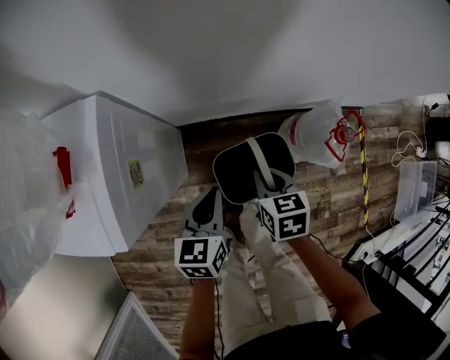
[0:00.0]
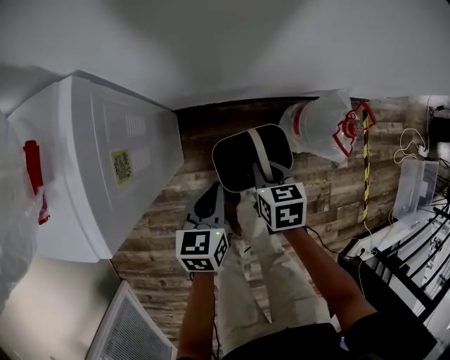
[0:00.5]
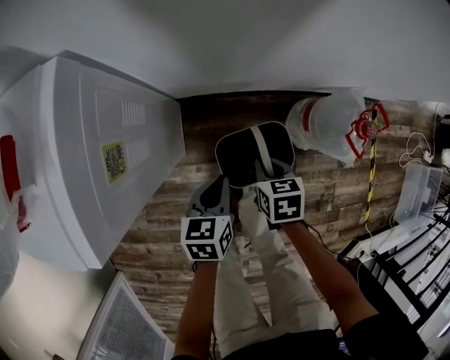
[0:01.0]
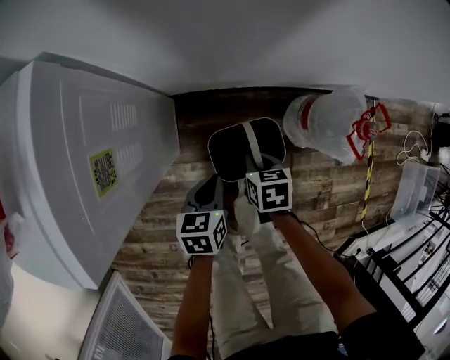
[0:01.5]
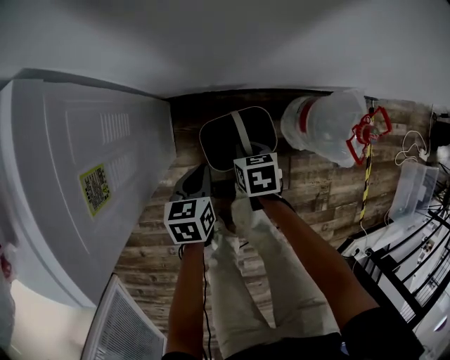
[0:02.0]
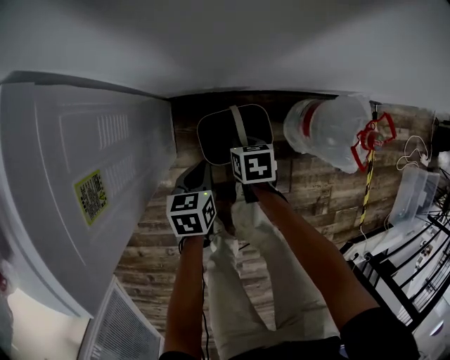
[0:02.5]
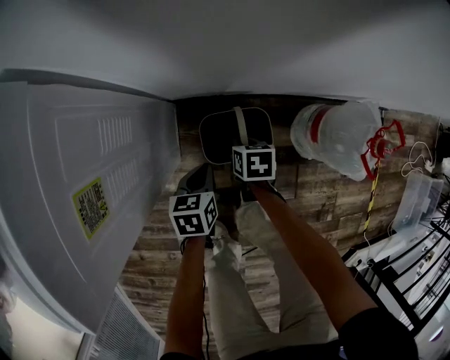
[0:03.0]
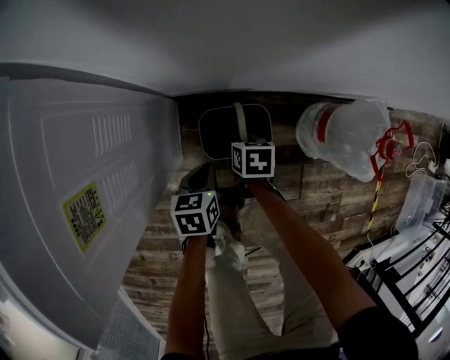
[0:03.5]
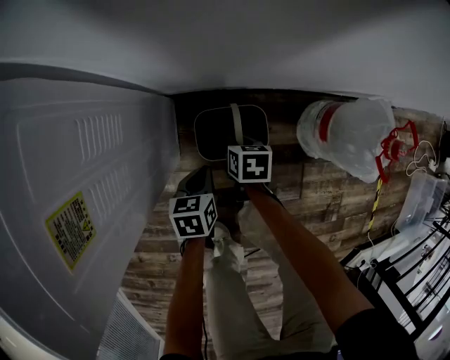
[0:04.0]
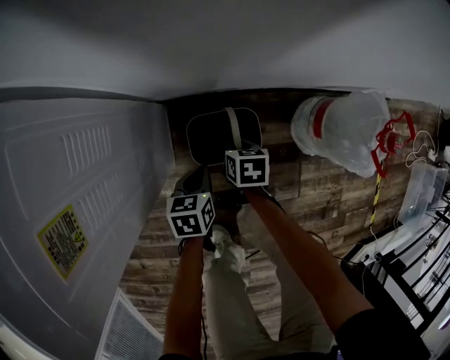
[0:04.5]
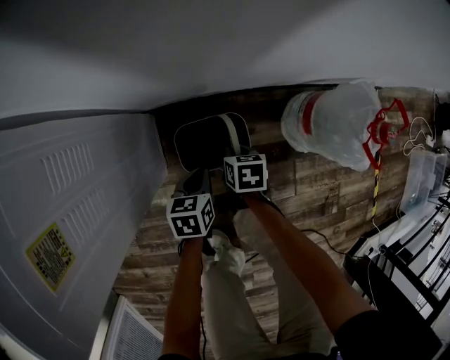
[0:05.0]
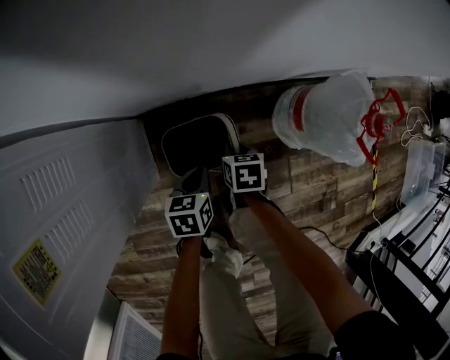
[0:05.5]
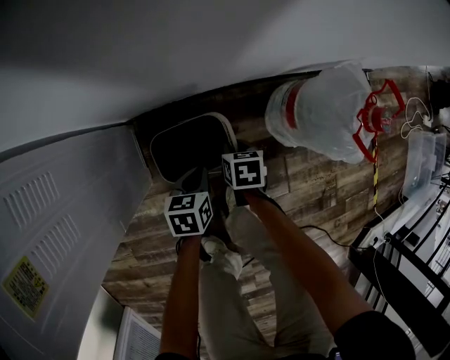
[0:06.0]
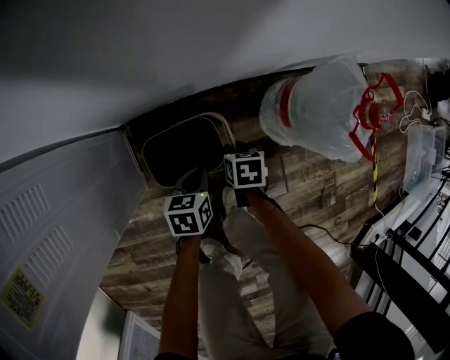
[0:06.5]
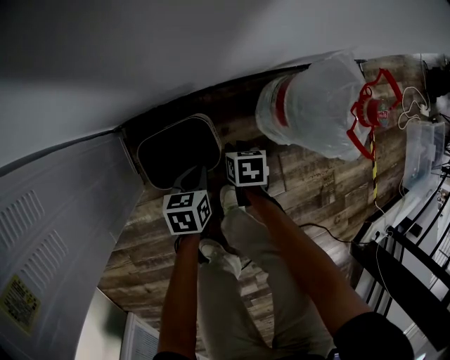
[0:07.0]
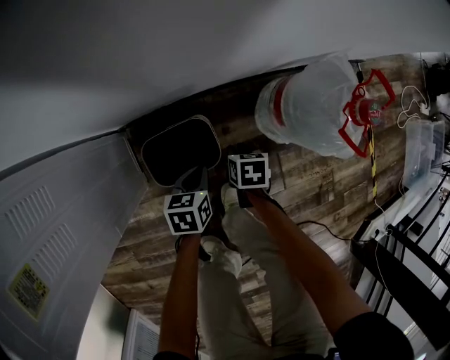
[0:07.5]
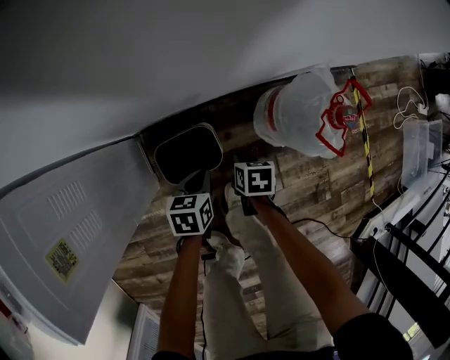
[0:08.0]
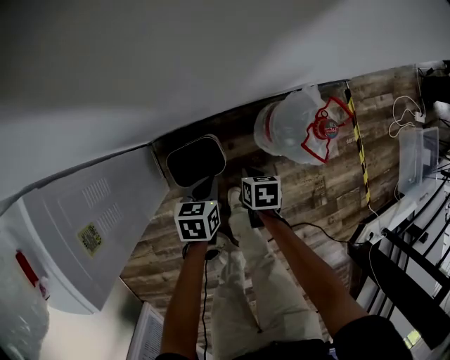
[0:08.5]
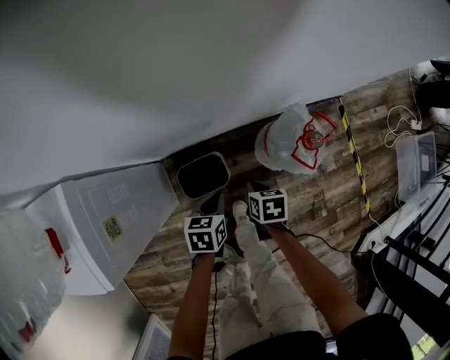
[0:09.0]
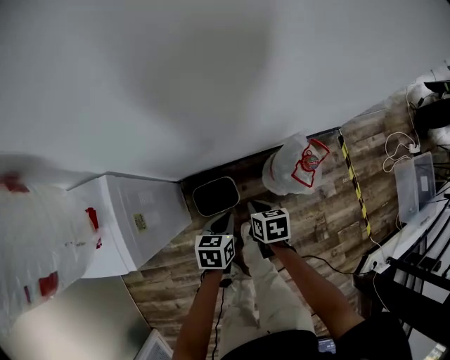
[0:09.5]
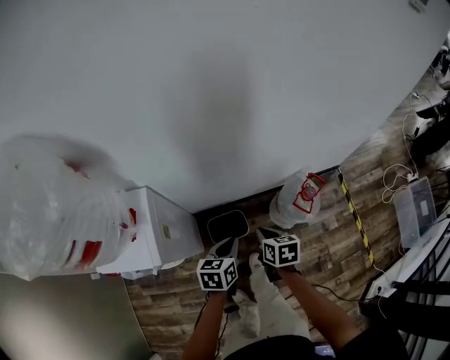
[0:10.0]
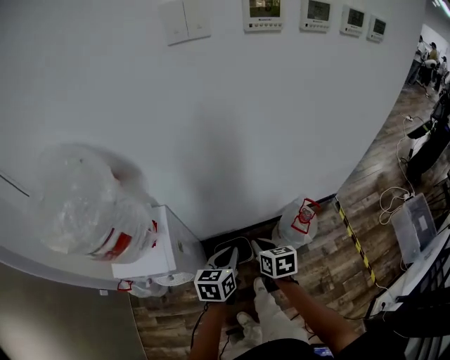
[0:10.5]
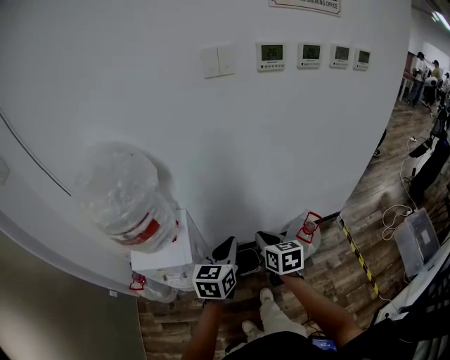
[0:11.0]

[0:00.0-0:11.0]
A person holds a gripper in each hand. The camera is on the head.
0:00.0 to 0:02.0: Both grippers travel together downward, roughly 20 cm.
0:02.0 to 0:03.5: The two grippers go roughly 10 cm downward.
0:03.5 to 0:05.5: Both grippers travel together to the right and downward, some 10 cm.
0:05.5 to 0:07.5: The grippers both shift to the right by approximately 10 cm.
0:07.5 to 0:09.0: The two grippers go approximately 25 cm upward.
0:09.0 to 0:11.0: The grippers both shift upward by approximately 50 cm. The right gripper points its fingers roughly 40 degrees further upward. Meanwhile the left gripper angles its fingers upward, by some 30 degrees.

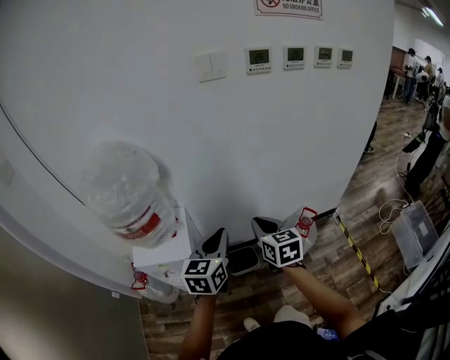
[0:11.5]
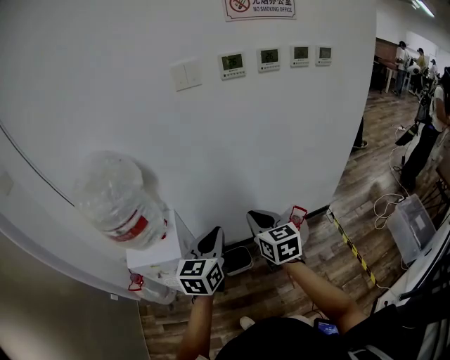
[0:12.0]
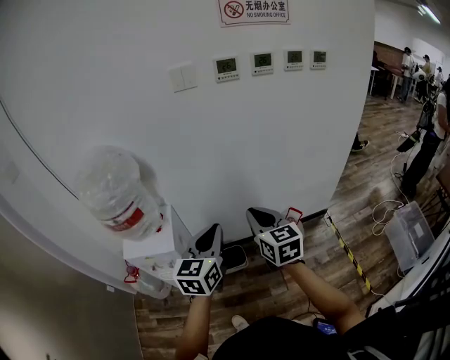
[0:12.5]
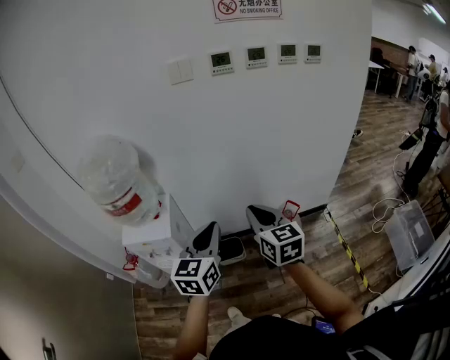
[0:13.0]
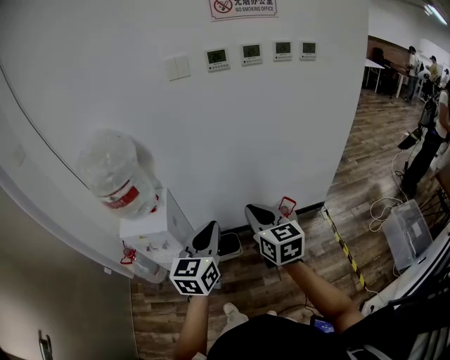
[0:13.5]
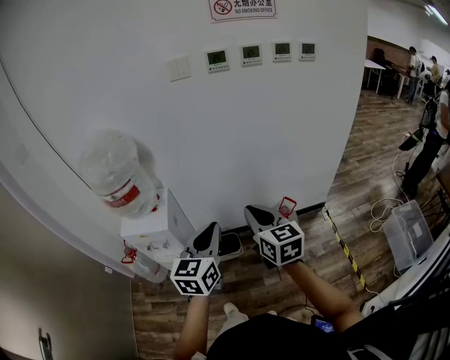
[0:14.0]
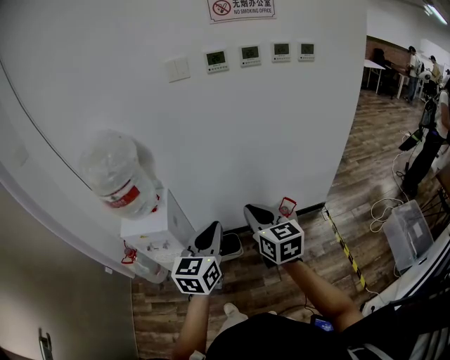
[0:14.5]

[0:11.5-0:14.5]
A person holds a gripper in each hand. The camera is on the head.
0:11.5 to 0:13.0: The left gripper moves backward, to the right and upward, approximately 15 cm. Meanwhile the right gripper heads to the right, backward and upward, covering approximately 15 cm.
0:13.0 to 0:14.5: There are only small adjustments of the grippers.

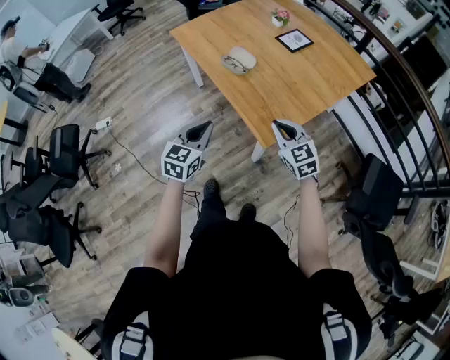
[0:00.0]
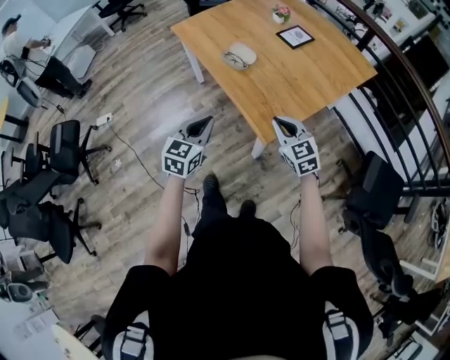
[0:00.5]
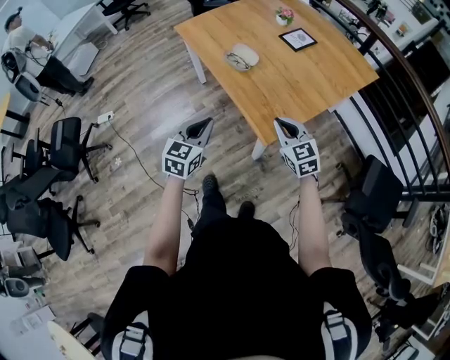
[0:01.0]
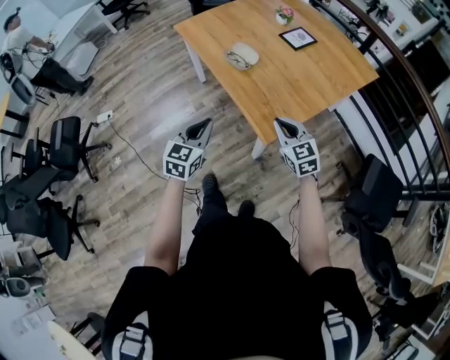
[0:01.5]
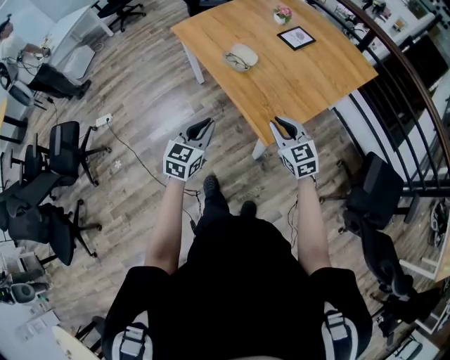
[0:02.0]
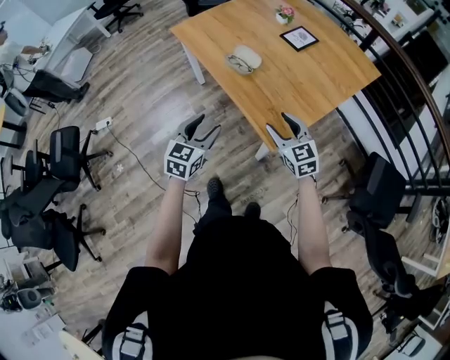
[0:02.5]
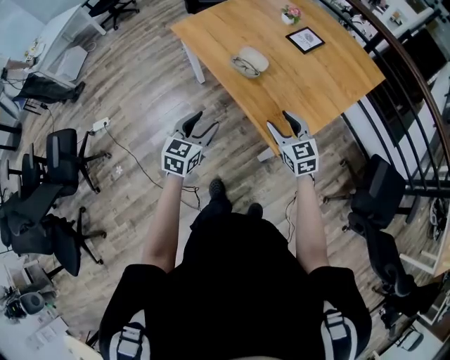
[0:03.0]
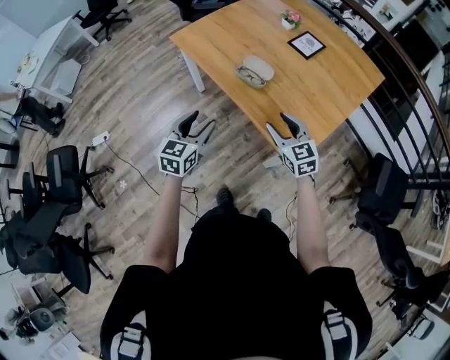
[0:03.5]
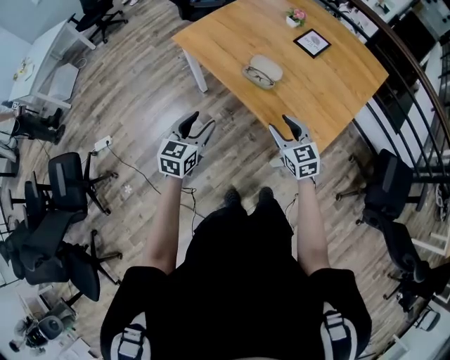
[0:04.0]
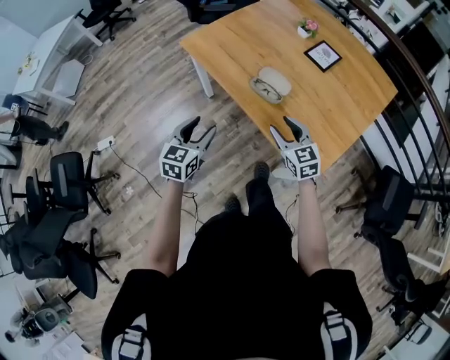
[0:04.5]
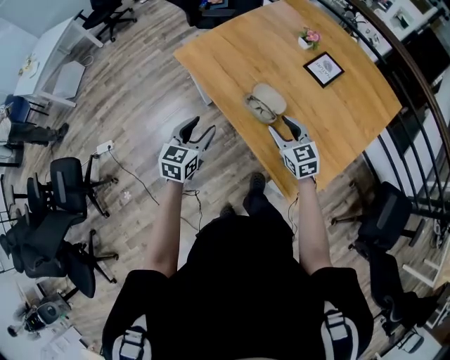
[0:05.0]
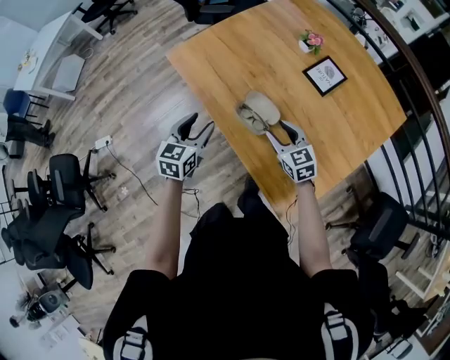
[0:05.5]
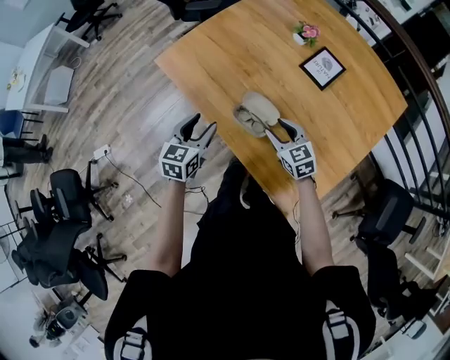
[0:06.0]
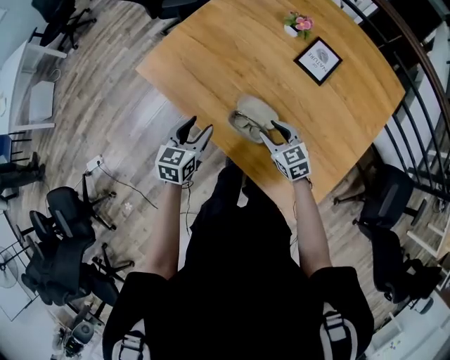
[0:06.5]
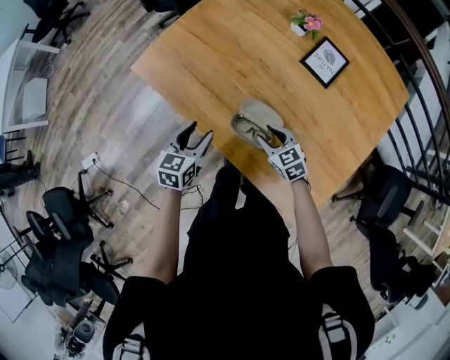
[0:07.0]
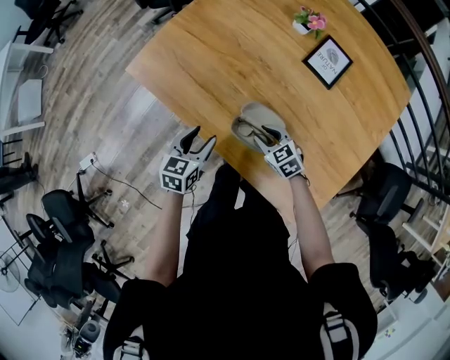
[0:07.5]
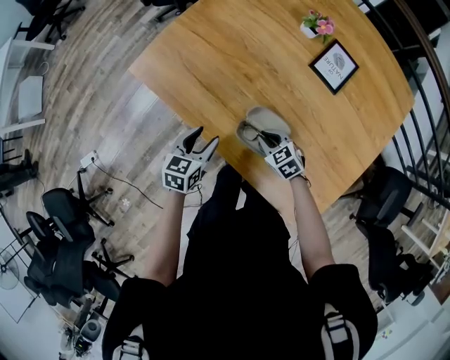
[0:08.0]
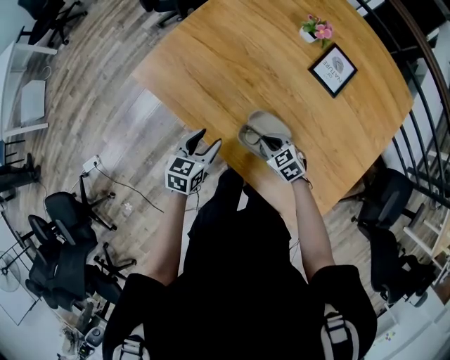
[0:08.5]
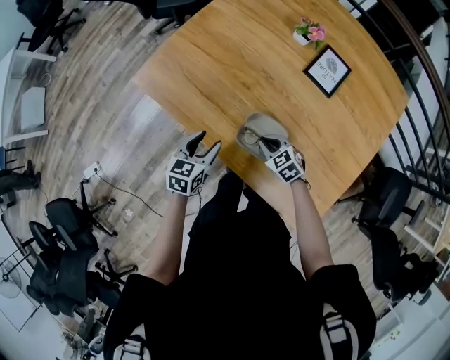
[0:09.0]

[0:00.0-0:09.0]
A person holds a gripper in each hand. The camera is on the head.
0:00.0 to 0:02.0: Neither gripper changes place.
0:02.0 to 0:04.5: The grippers both shift forward and to the left by approximately 25 cm. The left gripper opens, while the right gripper opens up.
0:04.5 to 0:07.0: The grippers both shift forward and downward by roughly 25 cm. The right gripper changes its angle by roughly 20 degrees.
0:07.0 to 0:09.0: The right gripper closes up.

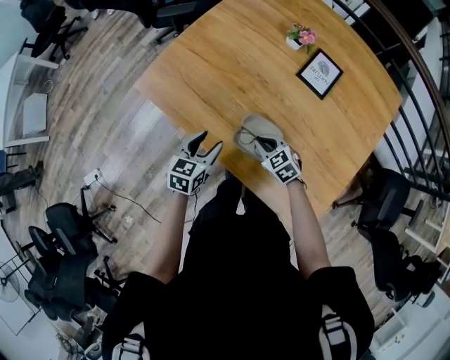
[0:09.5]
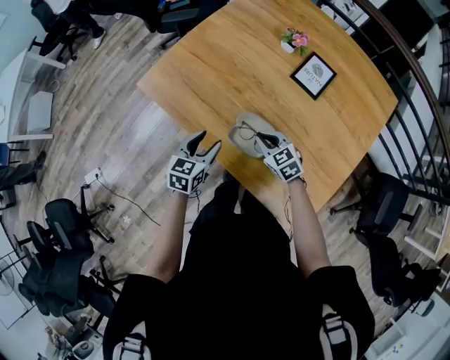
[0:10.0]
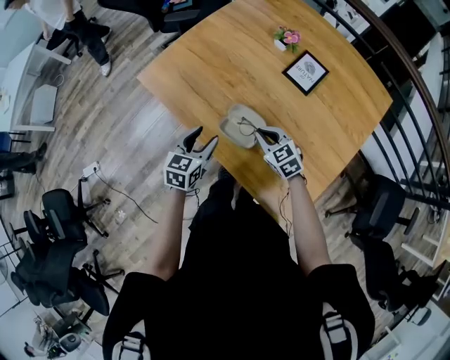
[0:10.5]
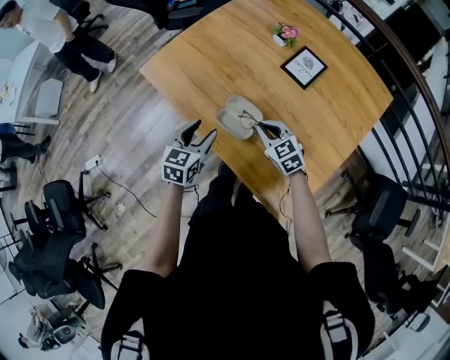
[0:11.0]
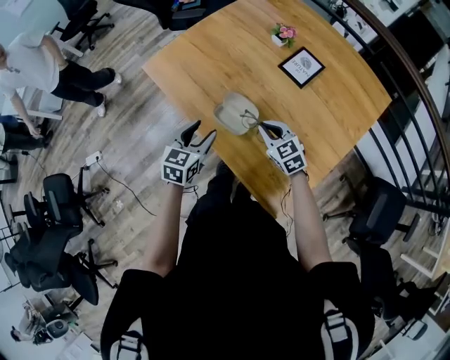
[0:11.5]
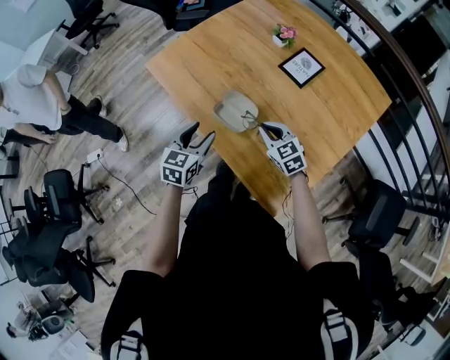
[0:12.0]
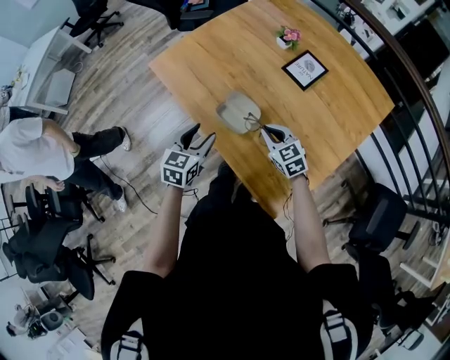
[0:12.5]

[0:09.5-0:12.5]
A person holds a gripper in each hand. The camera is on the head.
0:09.5 to 0:11.0: The right gripper travels upward and to the right by about 10 cm. Meanwhile the left gripper goes about 10 cm upward and backward.
0:11.0 to 0:12.5: The left gripper is displaced backward by some 5 cm.
